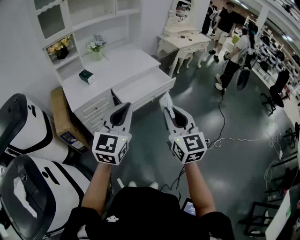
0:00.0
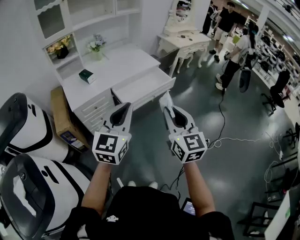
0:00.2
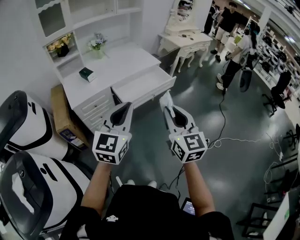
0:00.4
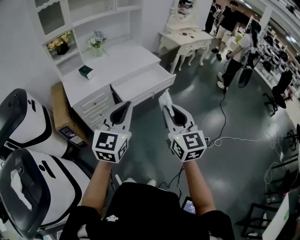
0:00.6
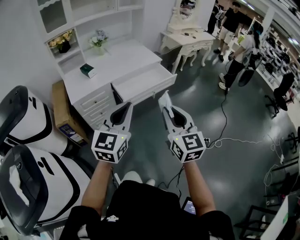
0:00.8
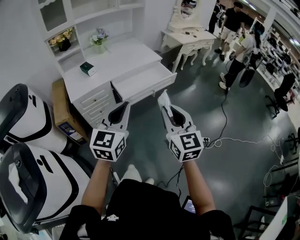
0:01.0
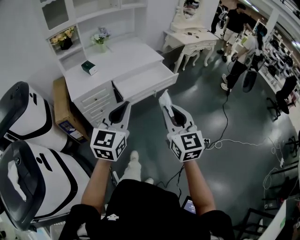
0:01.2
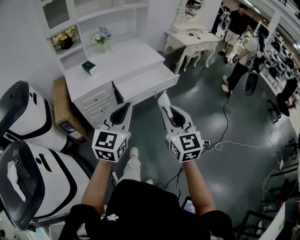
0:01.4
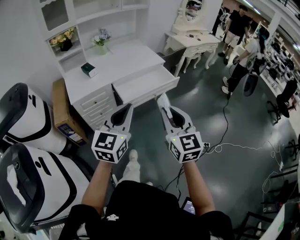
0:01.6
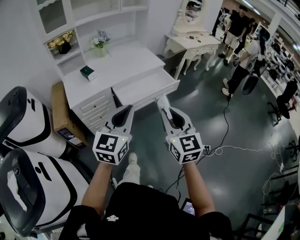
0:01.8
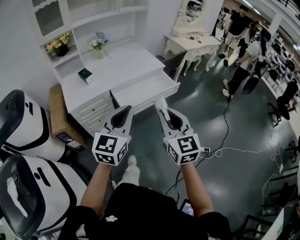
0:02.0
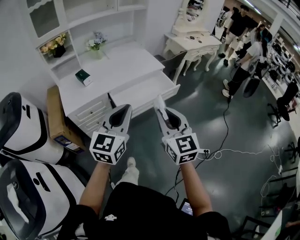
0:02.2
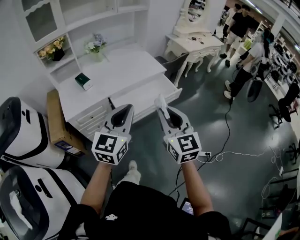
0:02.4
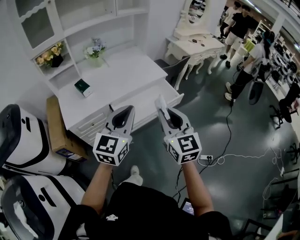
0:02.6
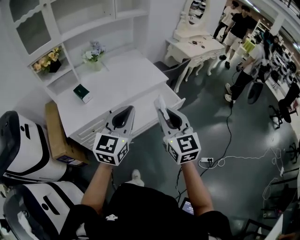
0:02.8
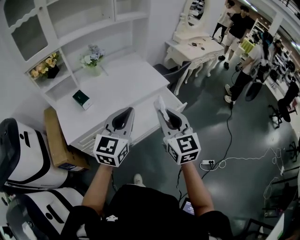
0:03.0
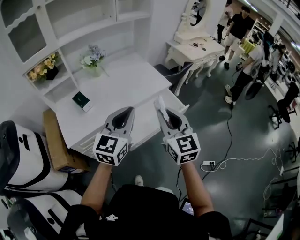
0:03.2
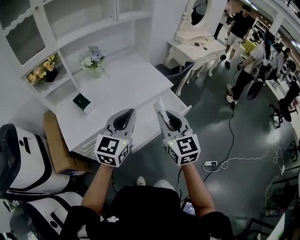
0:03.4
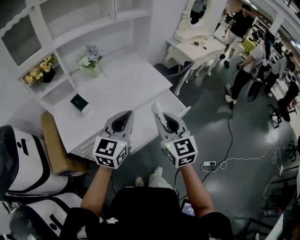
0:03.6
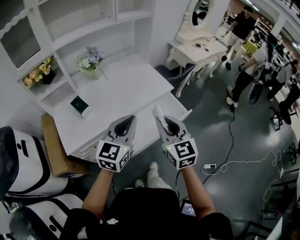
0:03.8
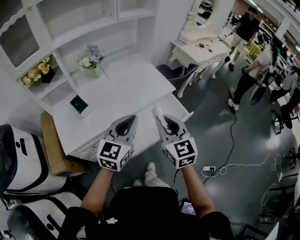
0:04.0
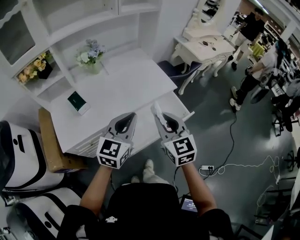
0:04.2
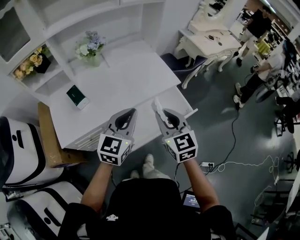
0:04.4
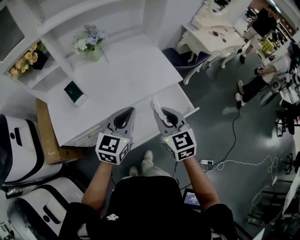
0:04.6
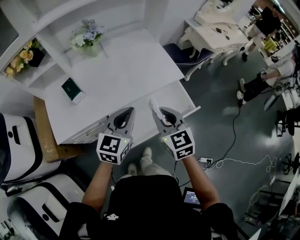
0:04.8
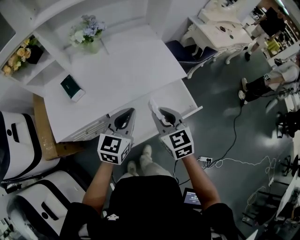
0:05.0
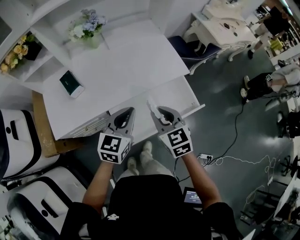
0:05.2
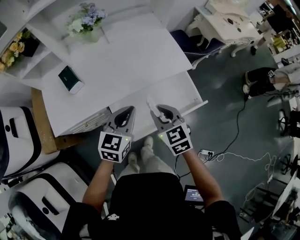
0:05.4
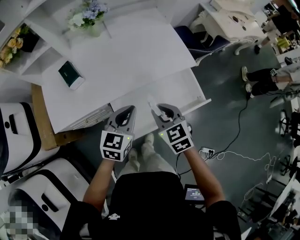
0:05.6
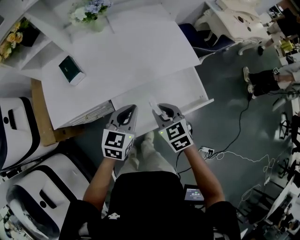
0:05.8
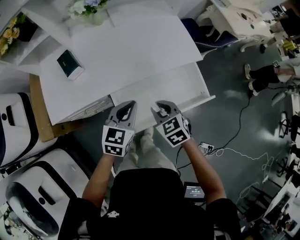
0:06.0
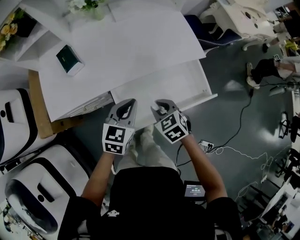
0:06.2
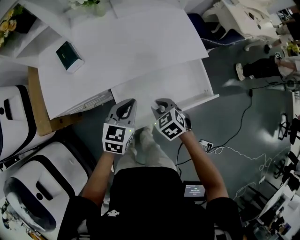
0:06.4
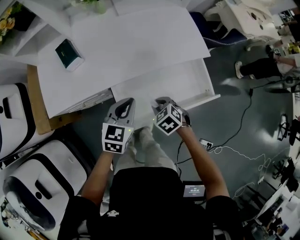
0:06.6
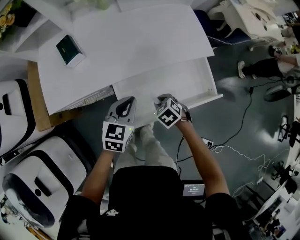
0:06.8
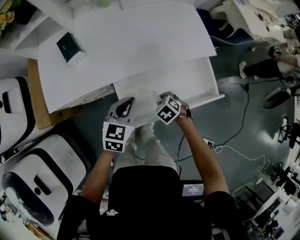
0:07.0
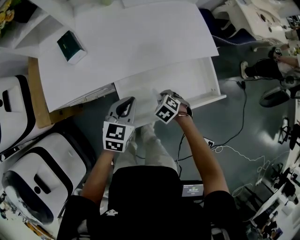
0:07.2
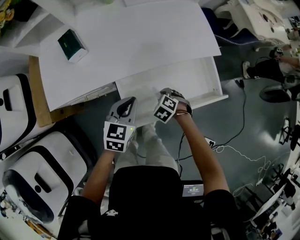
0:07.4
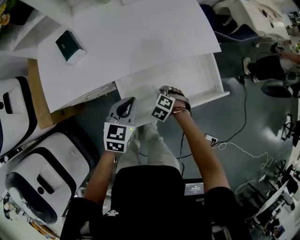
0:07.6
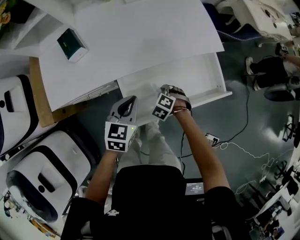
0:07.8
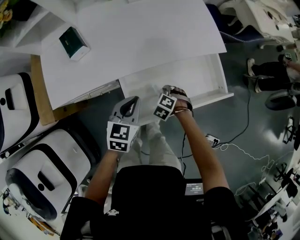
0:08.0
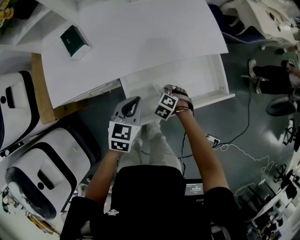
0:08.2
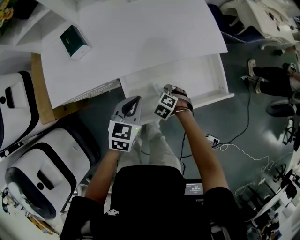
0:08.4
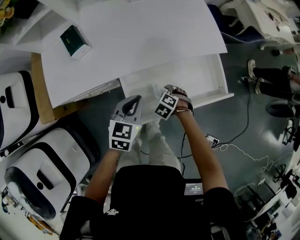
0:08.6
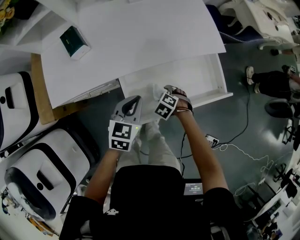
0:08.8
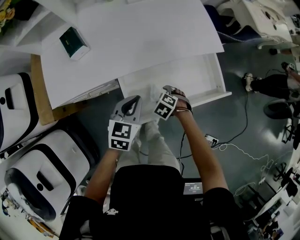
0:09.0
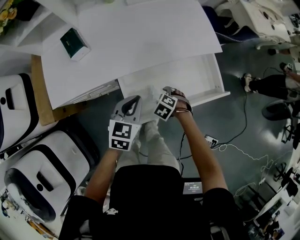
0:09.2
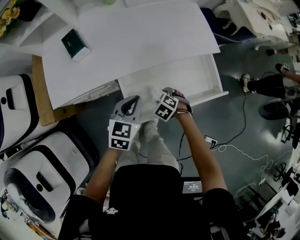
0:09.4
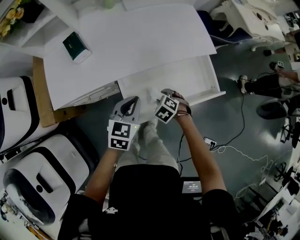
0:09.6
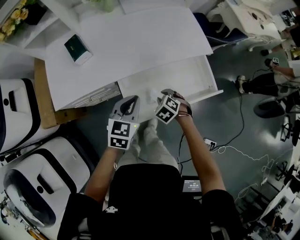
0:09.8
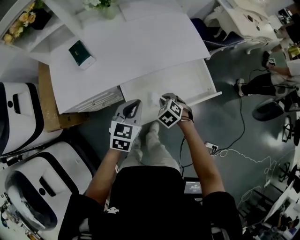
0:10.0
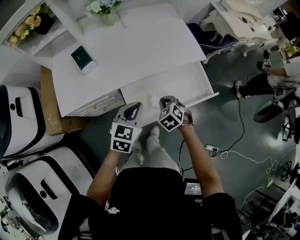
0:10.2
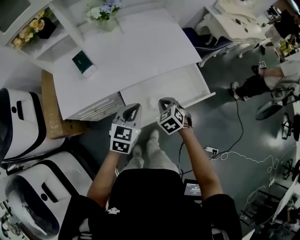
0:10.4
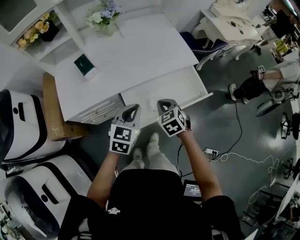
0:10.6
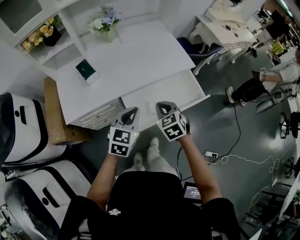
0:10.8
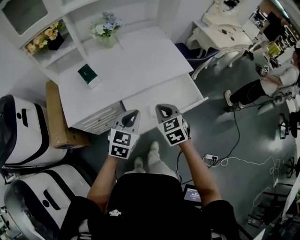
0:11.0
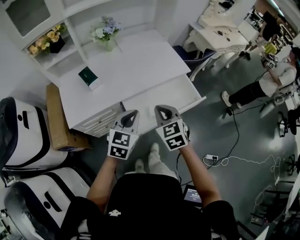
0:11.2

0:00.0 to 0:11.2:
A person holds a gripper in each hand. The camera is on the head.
0:00.0 to 0:01.6: The right gripper ends up some 5 cm from where it was, while the left gripper changes place by some 5 cm.
0:01.6 to 0:03.2: Both grippers move forward, approximately 35 cm.
0:03.2 to 0:04.8: The two grippers go approximately 20 cm forward and downward. The right gripper swivels some 20 degrees.
0:04.8 to 0:06.4: Both grippers travel together downward, about 20 cm. The right gripper tilts its fingers about 30 degrees downward.
0:06.4 to 0:08.0: The right gripper goes about 15 cm downward, and rotates some 30 degrees. The left gripper travels downward by roughly 5 cm.
0:08.0 to 0:09.6: The right gripper moves upward, about 5 cm, and opens, then closes again.
0:09.6 to 0:11.2: The left gripper travels upward by some 15 cm; the right gripper is displaced upward by about 30 cm, tilts its fingers approximately 40 degrees upward, and closes.

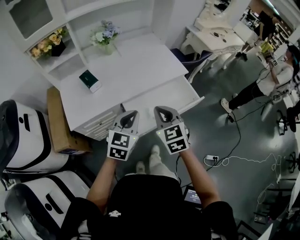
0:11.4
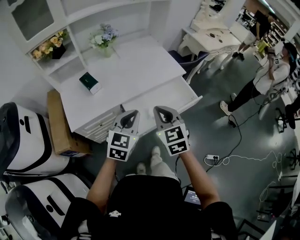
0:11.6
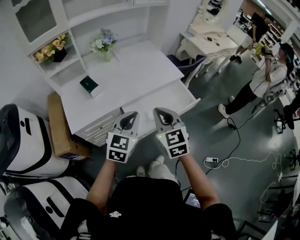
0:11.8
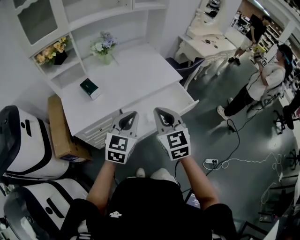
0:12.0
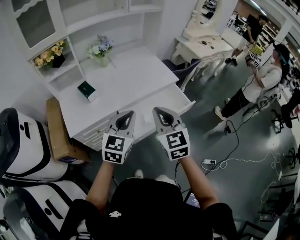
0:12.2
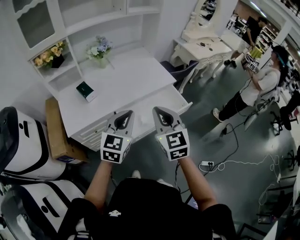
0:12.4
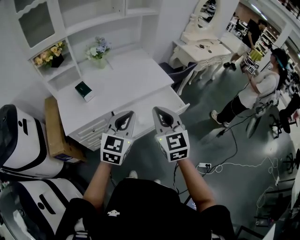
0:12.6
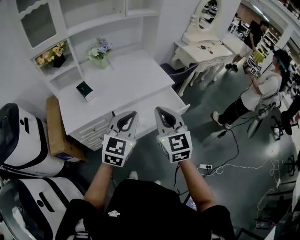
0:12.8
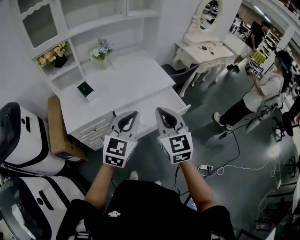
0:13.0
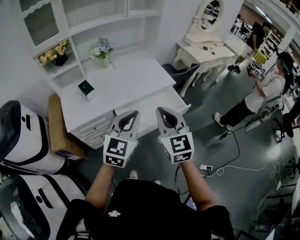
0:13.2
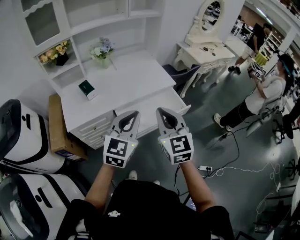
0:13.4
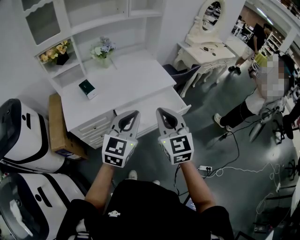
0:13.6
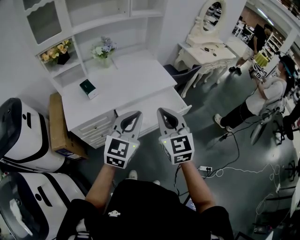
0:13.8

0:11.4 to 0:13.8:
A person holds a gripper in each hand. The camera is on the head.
0:11.4 to 0:12.6: The right gripper shifts about 15 cm upward, backward and to the right, while the left gripper shifts some 10 cm upward and backward.
0:12.6 to 0:13.8: The left gripper ends up about 5 cm from where it was.

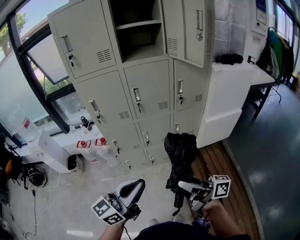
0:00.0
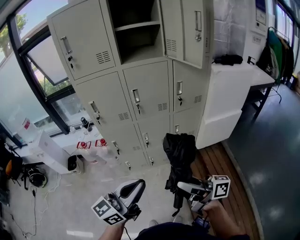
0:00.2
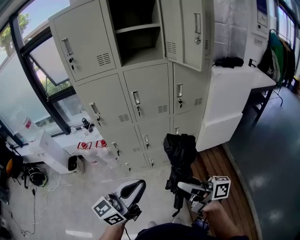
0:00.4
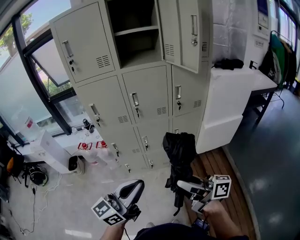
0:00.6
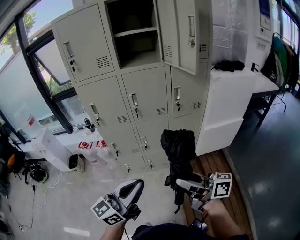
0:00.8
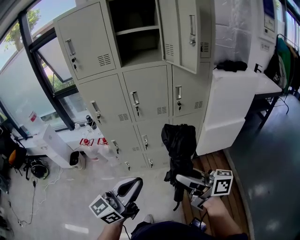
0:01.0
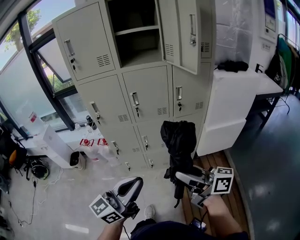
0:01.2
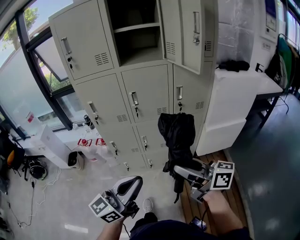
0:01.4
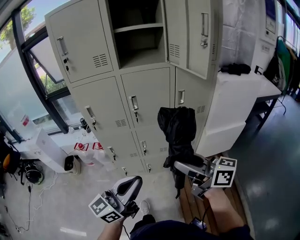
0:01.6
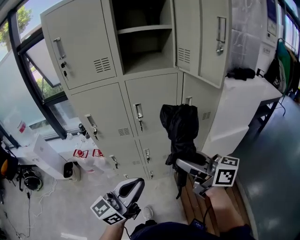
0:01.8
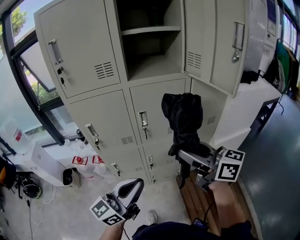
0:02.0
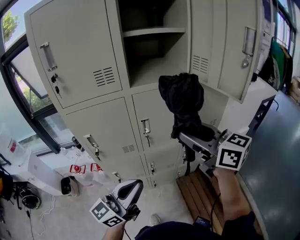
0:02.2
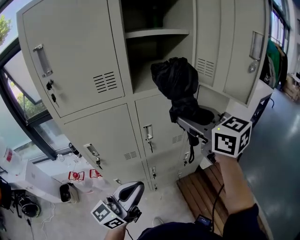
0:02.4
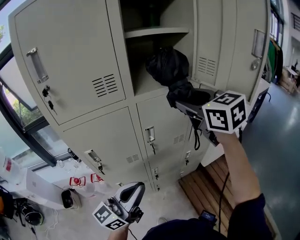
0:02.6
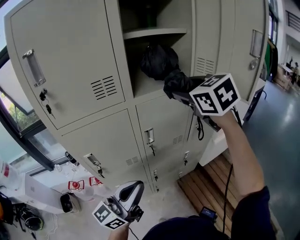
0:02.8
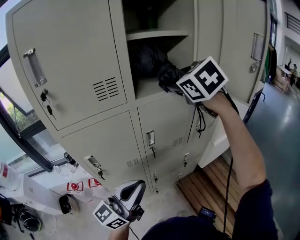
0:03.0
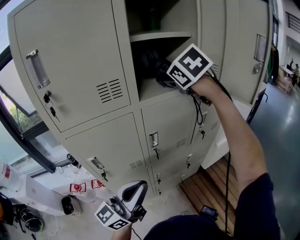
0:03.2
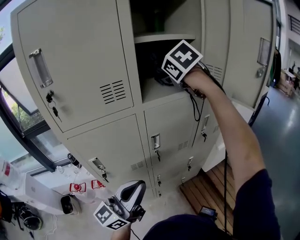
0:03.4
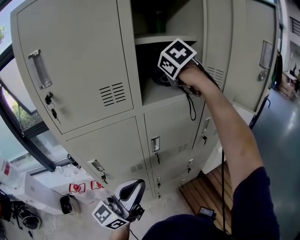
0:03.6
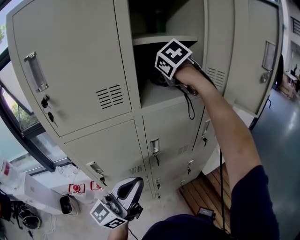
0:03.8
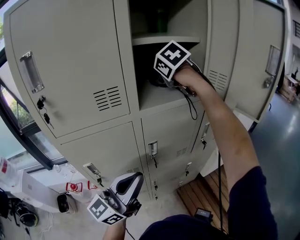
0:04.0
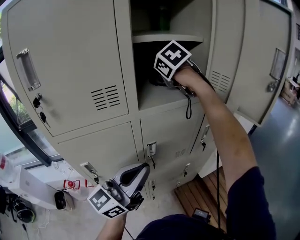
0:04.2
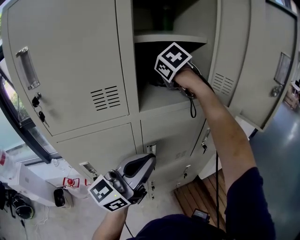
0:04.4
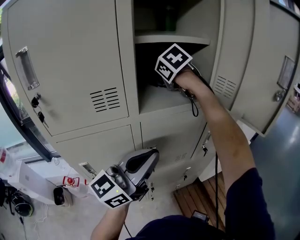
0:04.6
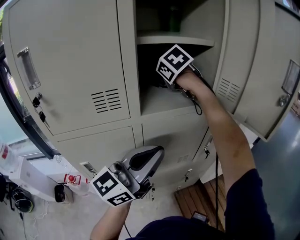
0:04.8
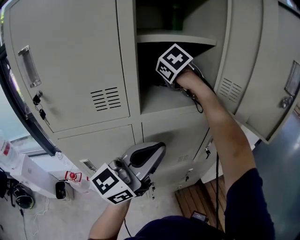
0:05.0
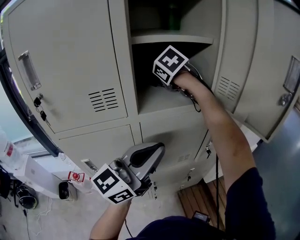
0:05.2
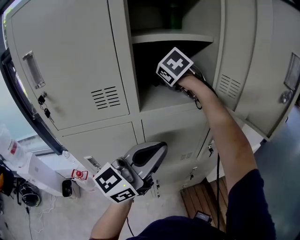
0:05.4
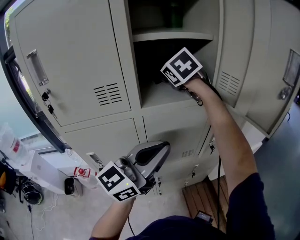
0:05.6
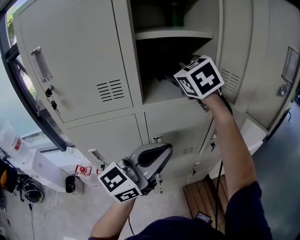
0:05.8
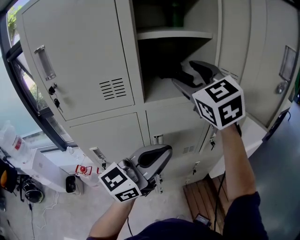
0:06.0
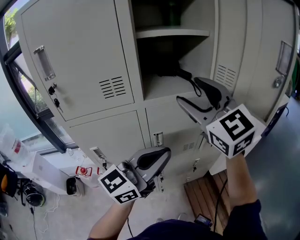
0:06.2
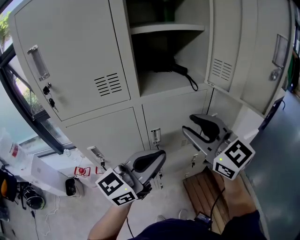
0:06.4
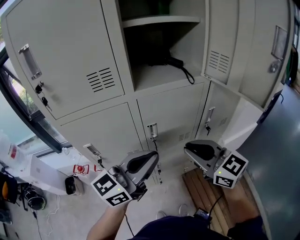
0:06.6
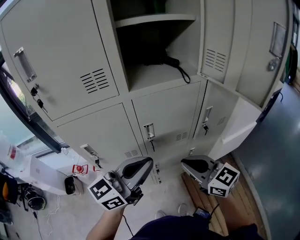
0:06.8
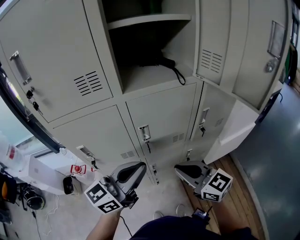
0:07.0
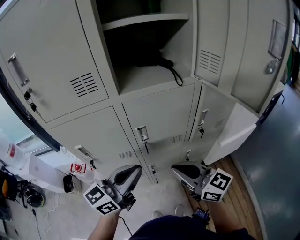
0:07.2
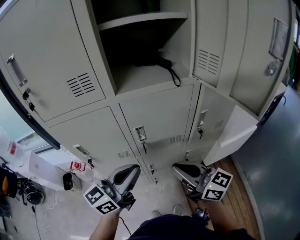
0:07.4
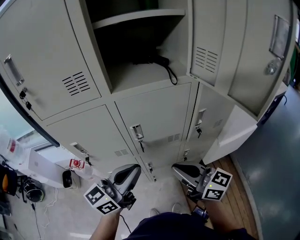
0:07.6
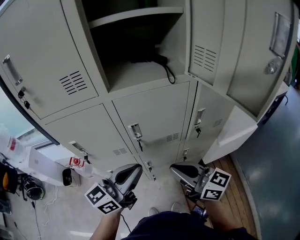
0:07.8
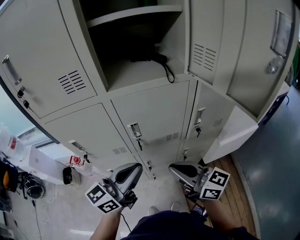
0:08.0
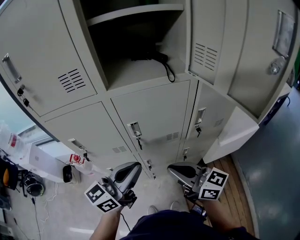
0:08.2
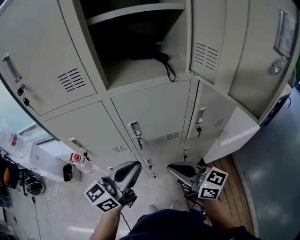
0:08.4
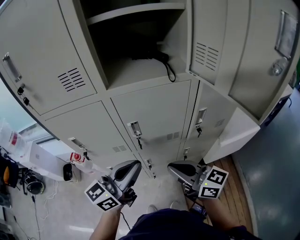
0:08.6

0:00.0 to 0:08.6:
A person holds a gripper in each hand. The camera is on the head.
0:00.0 to 0:01.4: The right gripper is displaced forward, to the right and upward by approximately 10 cm; the left gripper moves to the right, roughly 5 cm.
0:01.4 to 0:02.8: The right gripper ends up approximately 50 cm from where it was, and angles its fingers downward, by some 30 degrees. Meanwhile the left gripper shifts by roughly 35 cm.
0:02.8 to 0:04.4: The left gripper heads forward and upward, covering approximately 15 cm, while the right gripper is displaced forward and to the left by some 20 cm, and rotates some 20 degrees.
0:04.4 to 0:05.8: The left gripper moves to the right, approximately 5 cm. Meanwhile the right gripper shifts approximately 10 cm backward and upward, and swivels roughly 30 degrees.
0:05.8 to 0:07.2: The right gripper moves downward and backward, roughly 35 cm, swivels some 50 degrees, and closes up; the left gripper travels downward by approximately 10 cm.
0:07.2 to 0:08.6: There are only small adjustments of the grippers.

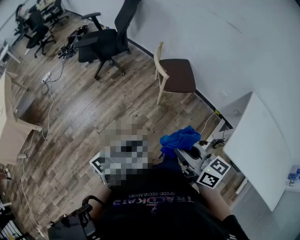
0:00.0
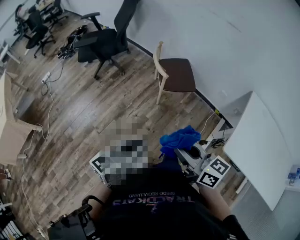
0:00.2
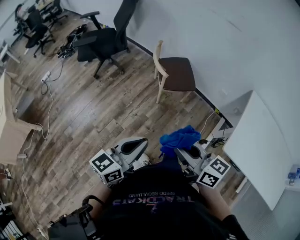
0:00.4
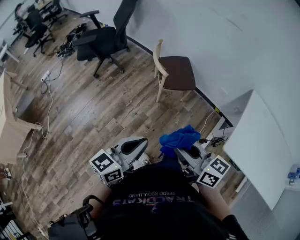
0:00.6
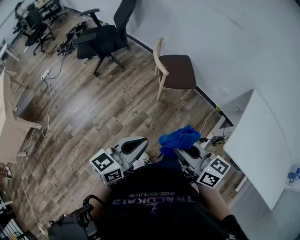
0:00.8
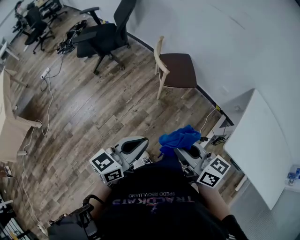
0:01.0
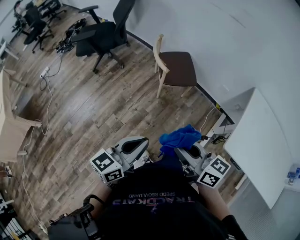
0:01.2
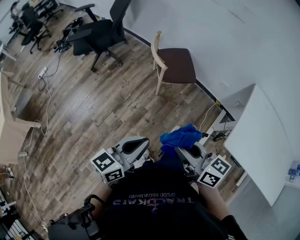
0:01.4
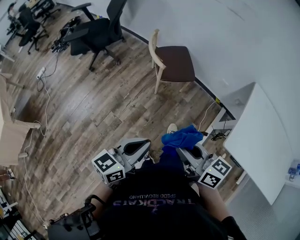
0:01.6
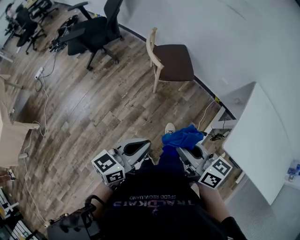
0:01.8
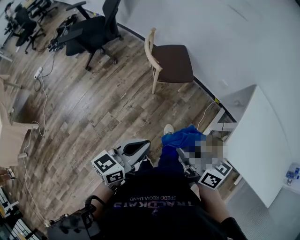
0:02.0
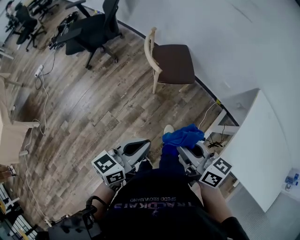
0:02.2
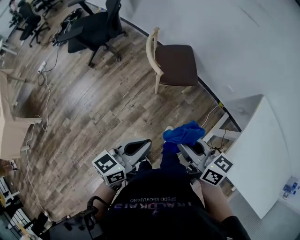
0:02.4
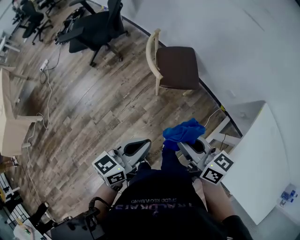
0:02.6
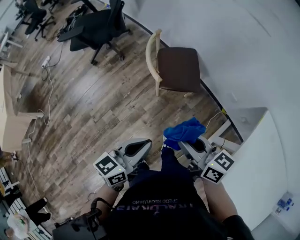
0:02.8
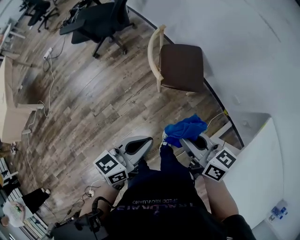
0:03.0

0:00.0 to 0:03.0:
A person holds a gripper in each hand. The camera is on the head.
0:00.0 to 0:01.6: The left gripper ends up approximately 5 cm from where it was.
0:01.6 to 0:03.0: Both grippers travel together forward and to the right, approximately 25 cm.
